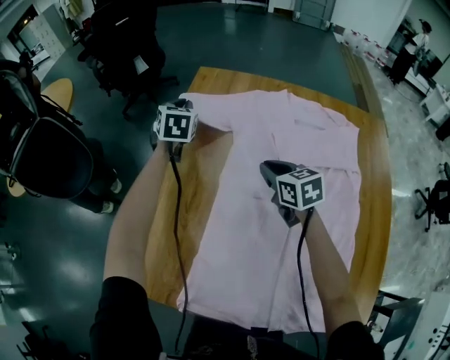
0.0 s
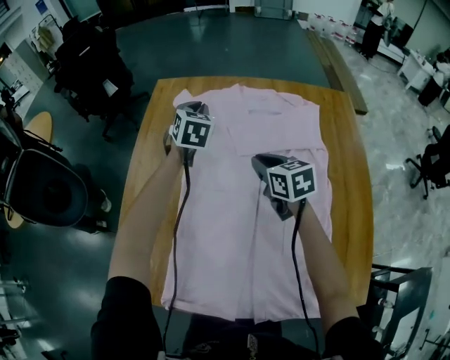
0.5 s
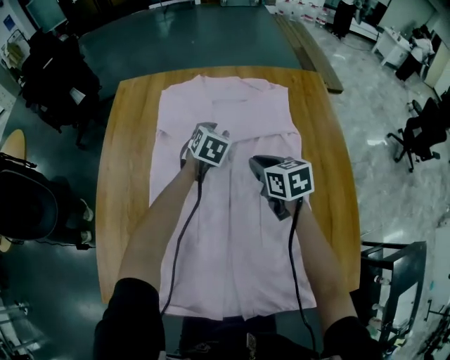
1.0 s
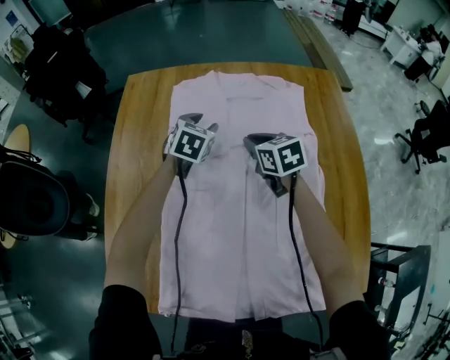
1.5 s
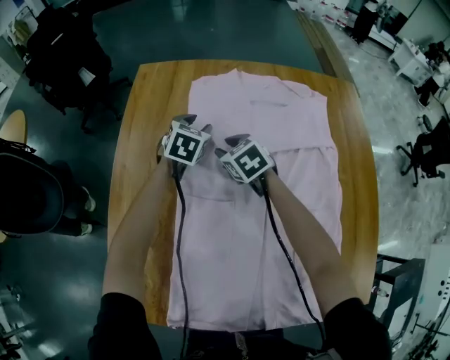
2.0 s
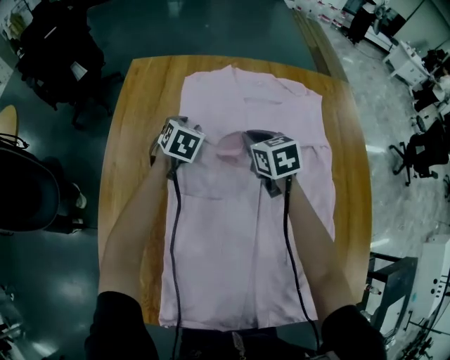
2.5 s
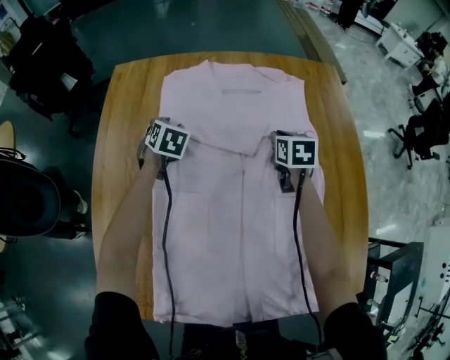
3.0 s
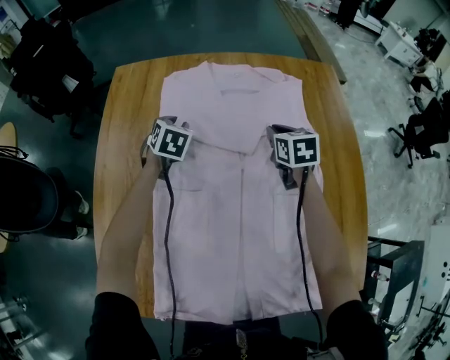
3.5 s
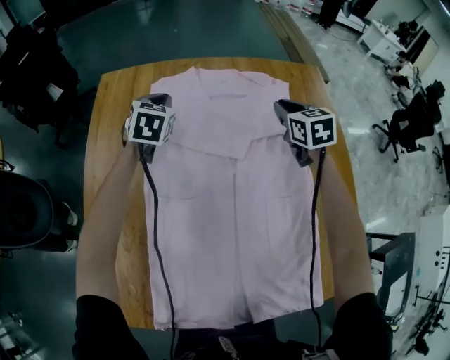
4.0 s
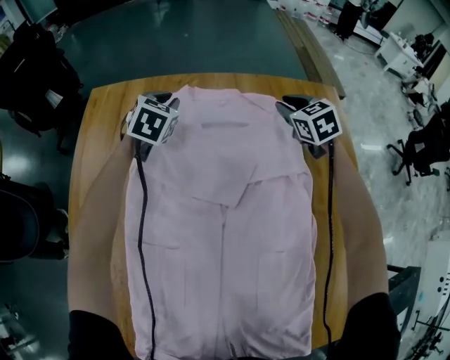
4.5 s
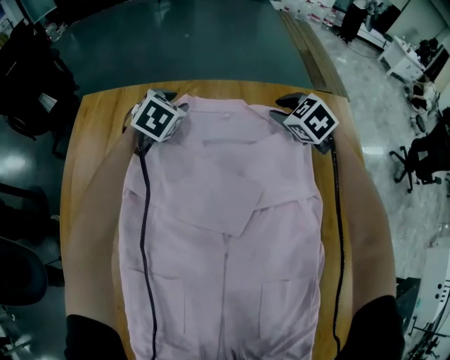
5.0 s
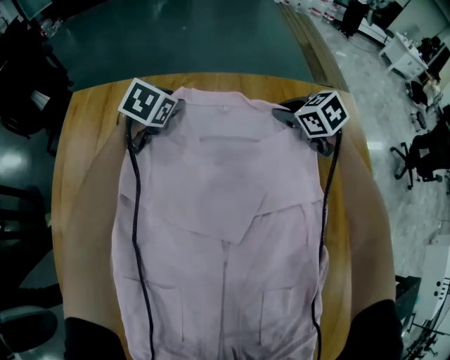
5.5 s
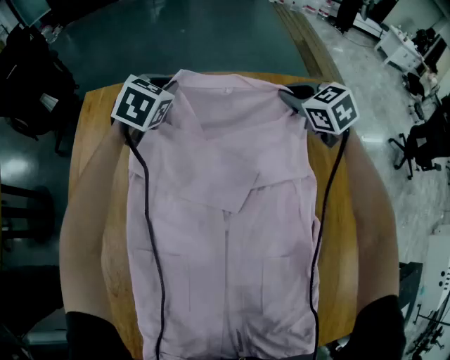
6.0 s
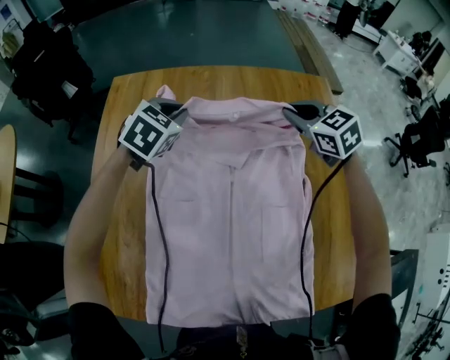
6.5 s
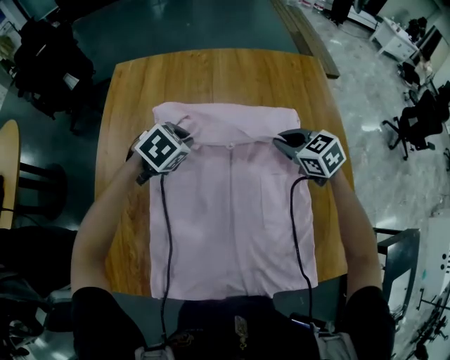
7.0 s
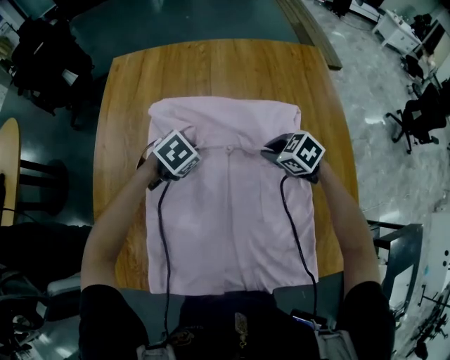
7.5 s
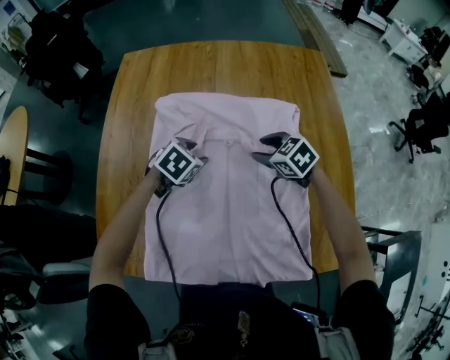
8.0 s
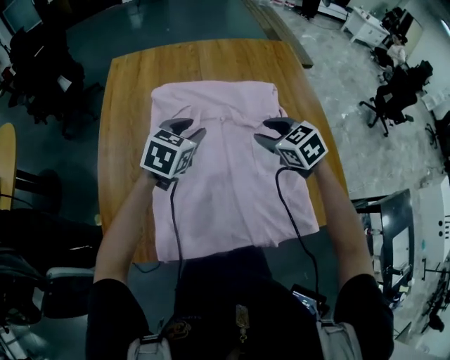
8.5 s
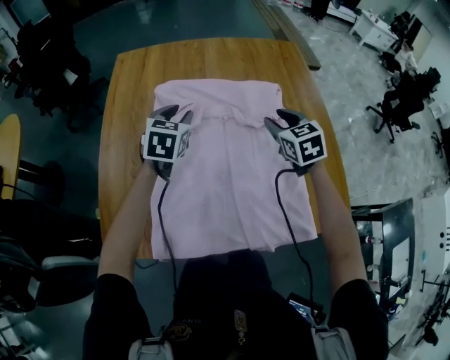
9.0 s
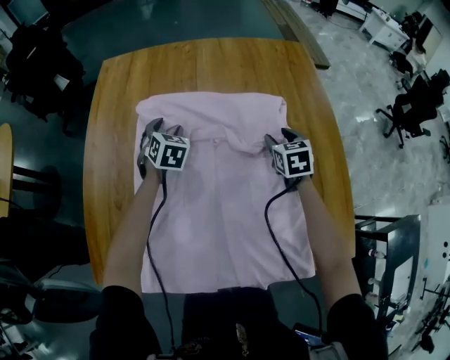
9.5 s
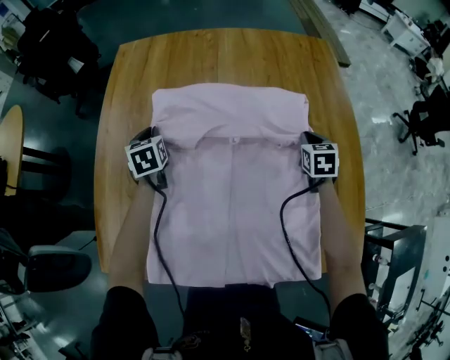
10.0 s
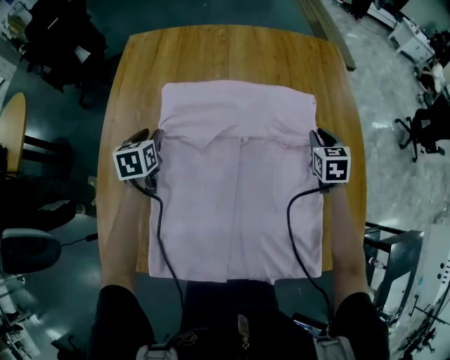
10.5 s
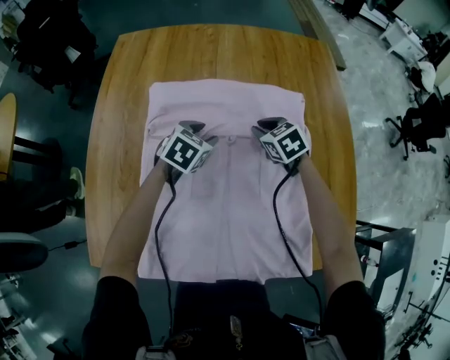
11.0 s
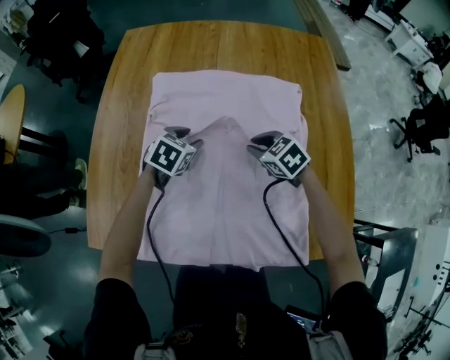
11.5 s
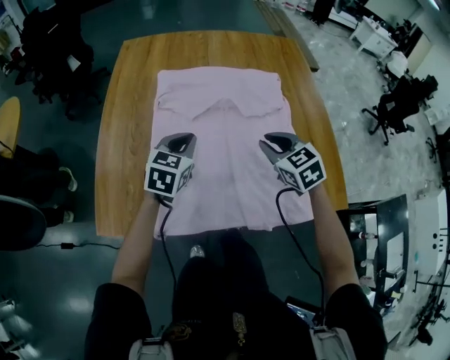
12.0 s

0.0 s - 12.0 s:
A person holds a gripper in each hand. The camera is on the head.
0.0 s - 2.0 s: The right gripper is displaced downward and forward by roughly 10 cm, travels to the right and back again, roughly 20 cm each way, and opens up. The left gripper goes roughly 25 cm to the right and downward, changes its angle by about 30 degrees, and opens its fingers.
2.0 s - 4.0 s: The right gripper is displaced to the right by approximately 30 cm, turns by roughly 30 degrees, and closes up; the left gripper goes some 5 cm upward, and closes.
4.0 s - 6.0 s: The right gripper heads forward, covering some 15 cm, and rotates about 30 degrees. The left gripper moves forward and to the right, about 15 cm, and opens, then closes again.
6.0 s - 8.0 s: Both grippers are carried backward, about 40 cm. The right gripper opens; the left gripper swivels about 30 degrees, and opens.
8.0 s - 10.0 s: The left gripper heads to the left and forward, covering about 20 cm, rotates roughly 60 degrees, and closes up. The right gripper is displaced to the right by roughly 15 cm, rotates about 50 degrees, and closes its fingers.
10.0 s - 12.0 s: The right gripper heads backward, to the left and upward, covering roughly 30 cm, and turns by about 30 degrees. The left gripper heads backward, to the right and upward, covering approximately 30 cm, rotates roughly 40 degrees, and opens, then closes again.

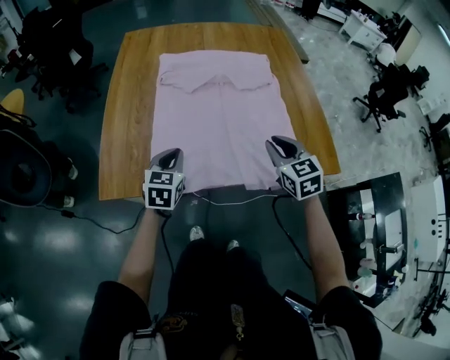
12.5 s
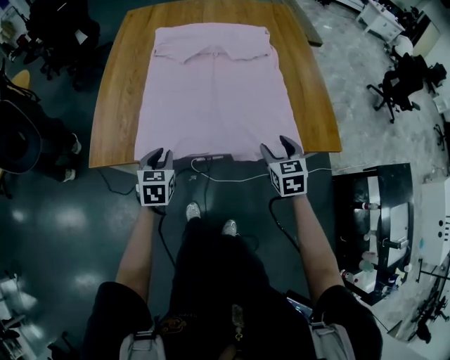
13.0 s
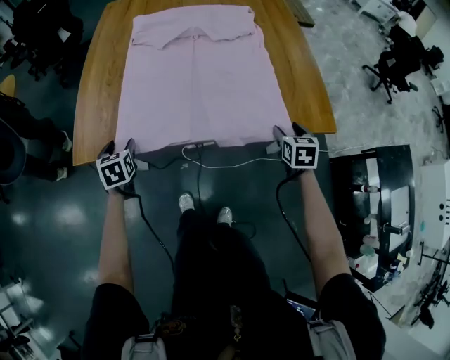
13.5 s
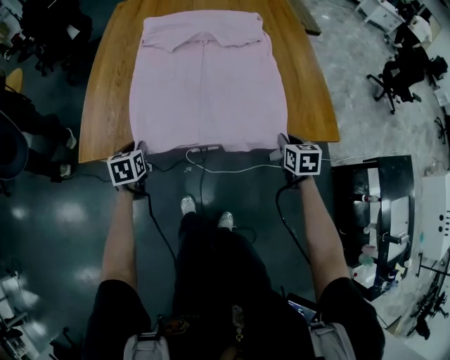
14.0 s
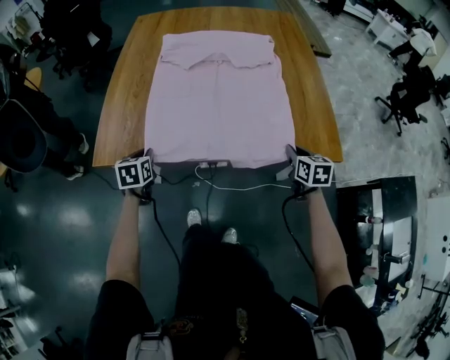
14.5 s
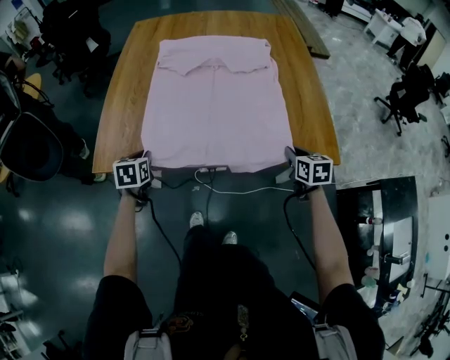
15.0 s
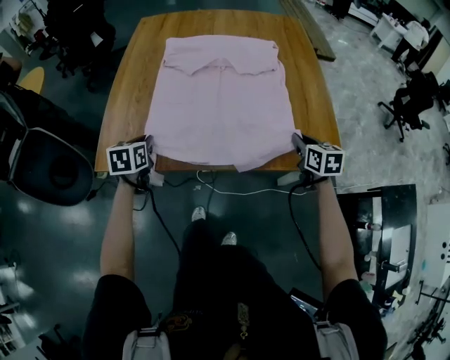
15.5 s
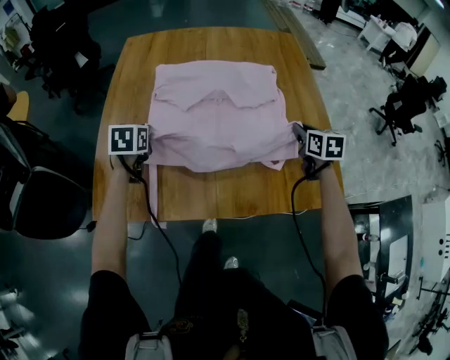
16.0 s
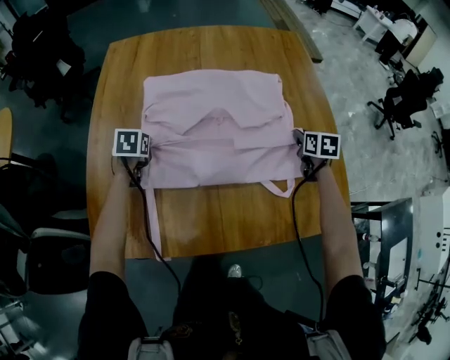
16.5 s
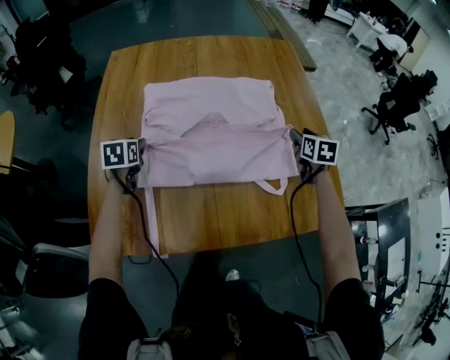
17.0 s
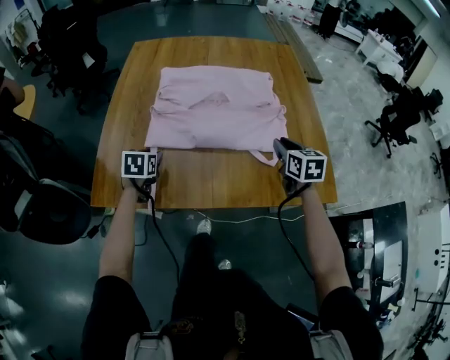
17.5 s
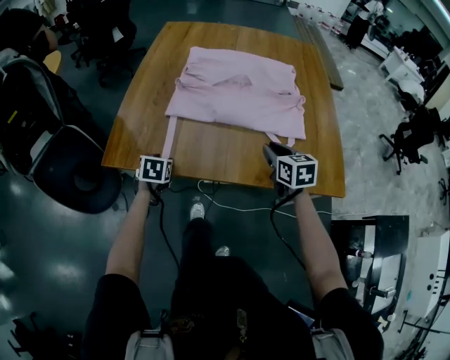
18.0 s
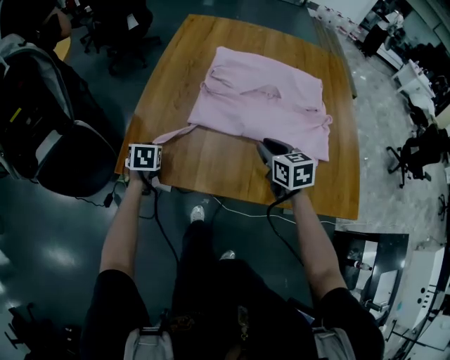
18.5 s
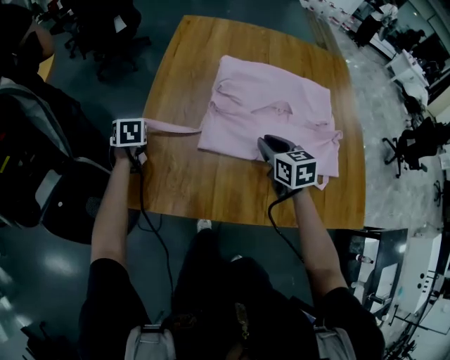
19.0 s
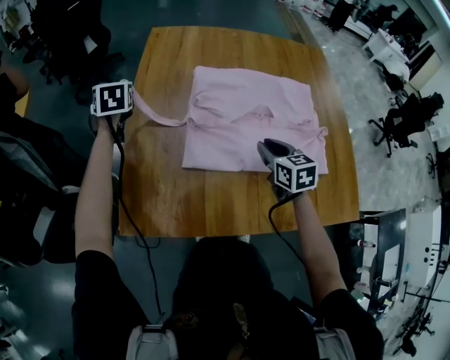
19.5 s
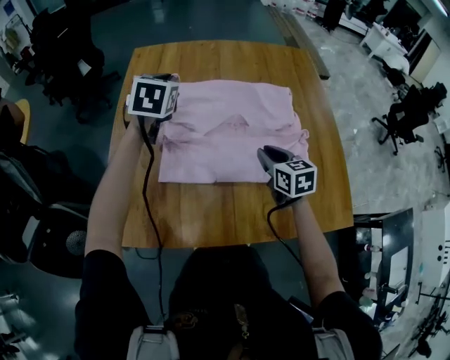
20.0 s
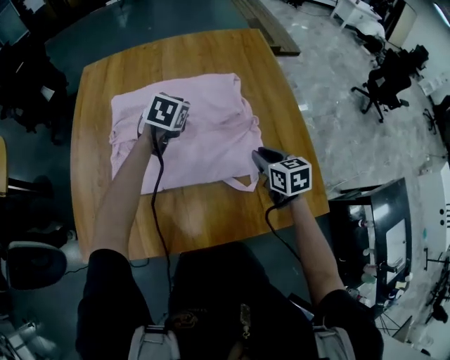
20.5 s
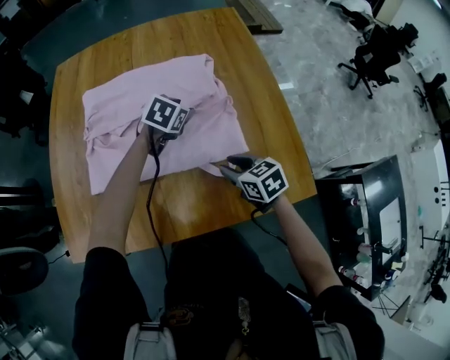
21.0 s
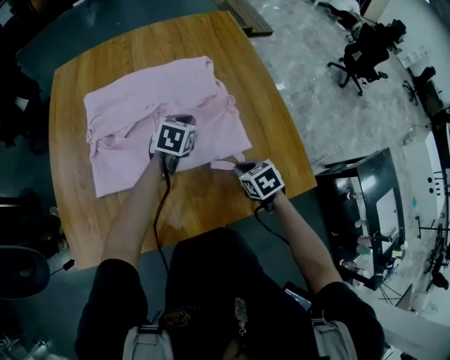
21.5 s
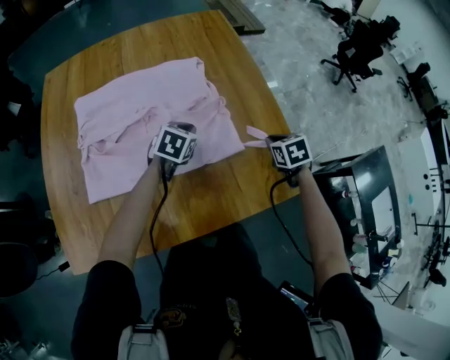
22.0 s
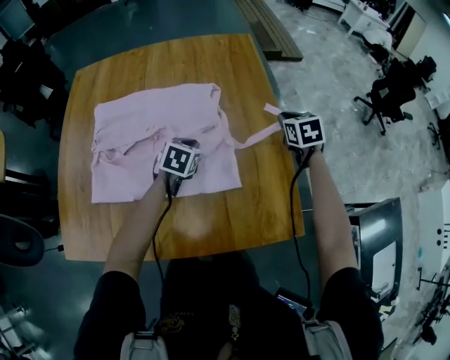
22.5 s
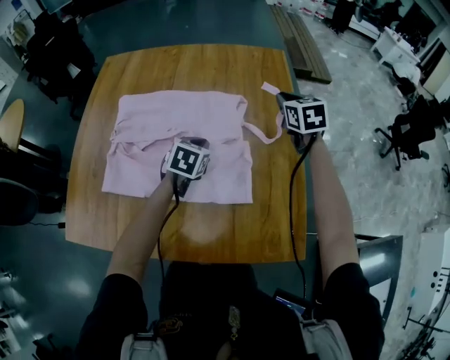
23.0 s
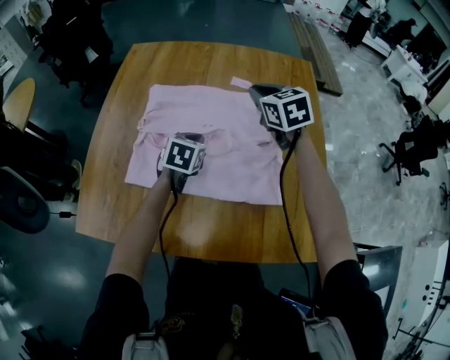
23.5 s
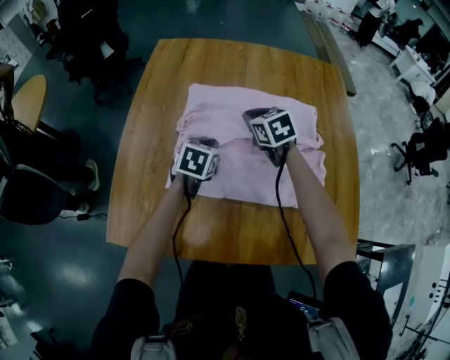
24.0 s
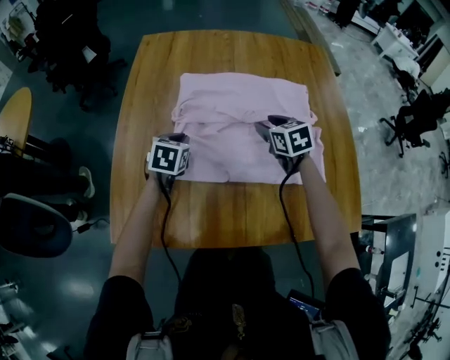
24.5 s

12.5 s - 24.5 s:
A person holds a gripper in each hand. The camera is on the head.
12.5 s - 14.5 s: The left gripper moves downward, to the left and backward, approximately 15 cm, changes its angle by approximately 30 degrees, and opens and closes again; the right gripper travels to the right, downward and backward by roughly 20 cm, rotates approximately 30 degrees, and opens, then closes again.
14.5 s - 16.5 s: Both grippers travel together forward, about 35 cm.
16.5 s - 18.5 s: The left gripper changes place by roughly 30 cm, and opens, then closes once more, while the right gripper shifts by roughly 35 cm, rotates about 40 degrees, and opens, then closes again.
18.5 s - 20.5 s: The left gripper ends up approximately 50 cm from where it was, and rotates roughly 40 degrees. Meanwhile the right gripper shifts by roughly 30 cm.
20.5 s - 22.5 s: The right gripper heads to the right and forward, covering approximately 25 cm; the left gripper heads to the right and downward, covering roughly 15 cm, and opens and closes again.
22.5 s - 24.5 s: Both grippers move to the left, approximately 40 cm. The right gripper opens up.

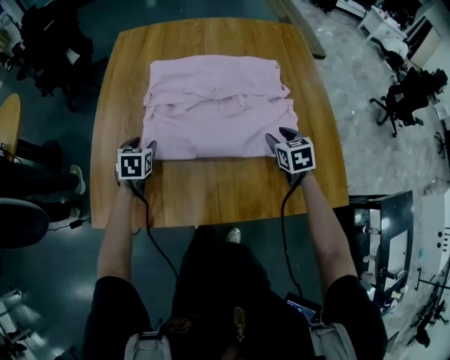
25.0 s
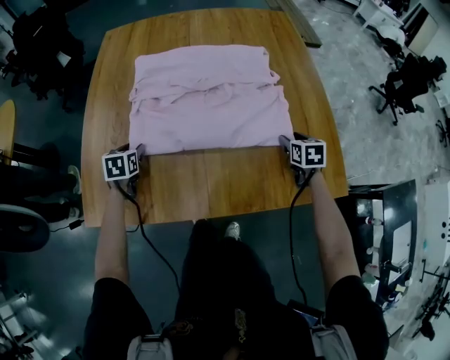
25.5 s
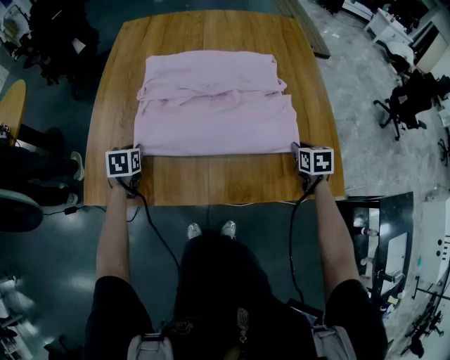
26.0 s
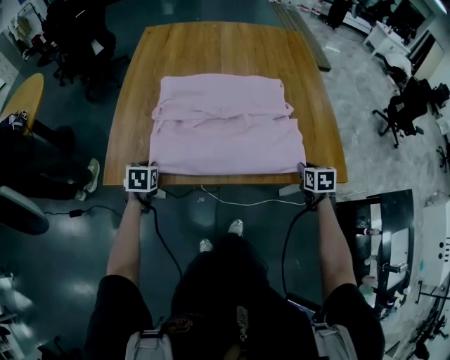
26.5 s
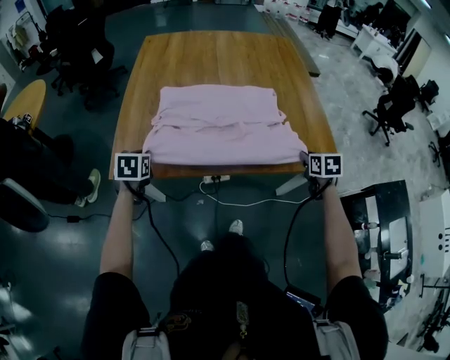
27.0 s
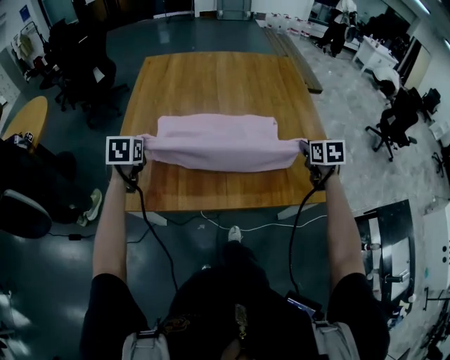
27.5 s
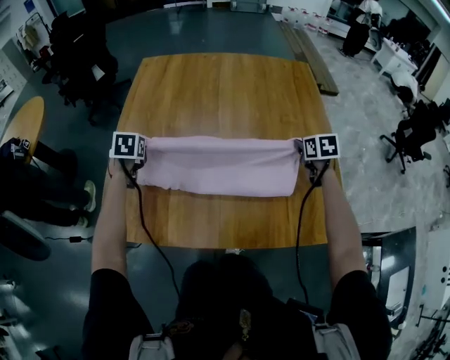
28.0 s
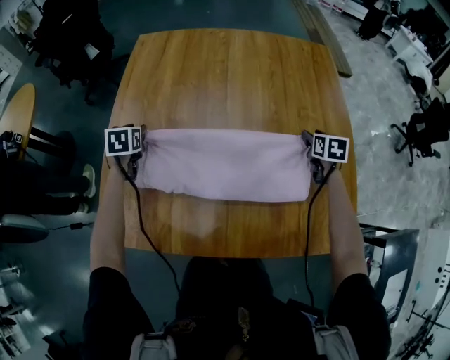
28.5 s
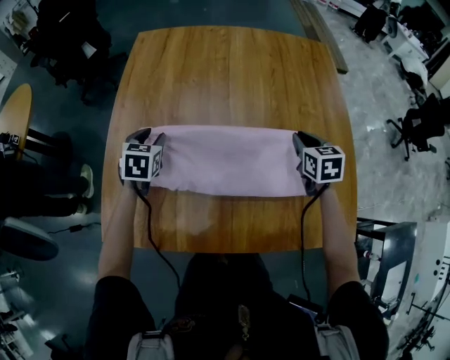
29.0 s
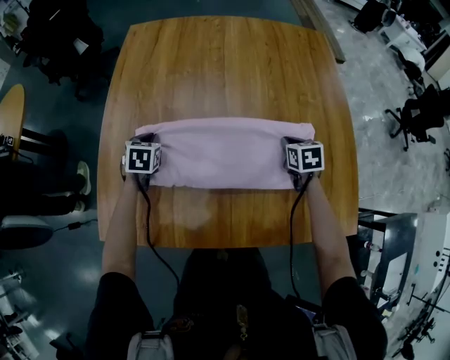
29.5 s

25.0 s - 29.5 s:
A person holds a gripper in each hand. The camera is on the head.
25.0 s - 27.0 s: Both grippers move backward, about 25 cm. The left gripper closes. The right gripper closes its fingers.
27.0 s - 29.5 s: The grippers both shift forward by roughly 30 cm. The left gripper opens, then closes once more. The right gripper opens, then closes again.
